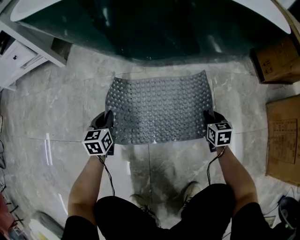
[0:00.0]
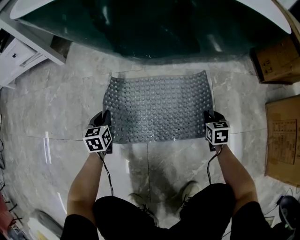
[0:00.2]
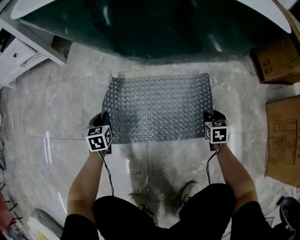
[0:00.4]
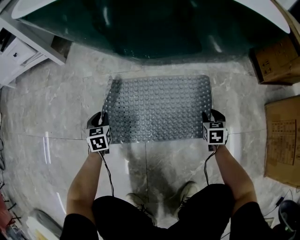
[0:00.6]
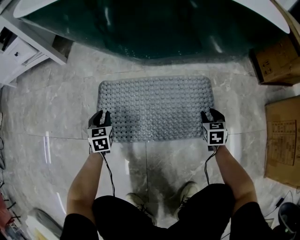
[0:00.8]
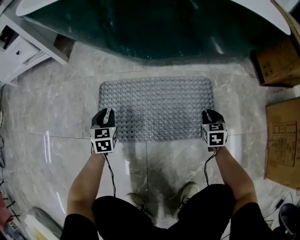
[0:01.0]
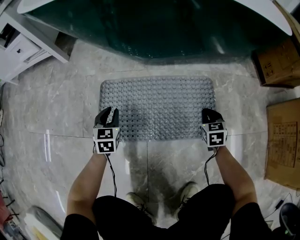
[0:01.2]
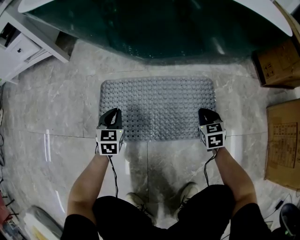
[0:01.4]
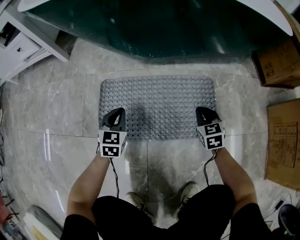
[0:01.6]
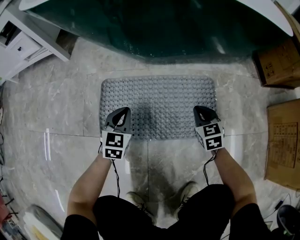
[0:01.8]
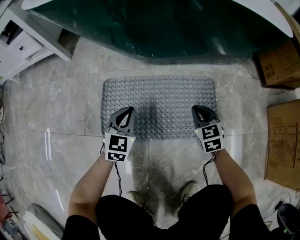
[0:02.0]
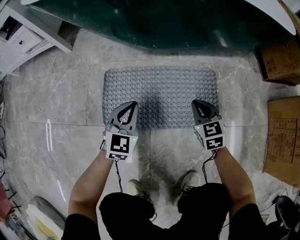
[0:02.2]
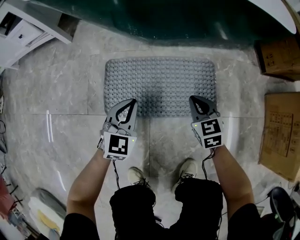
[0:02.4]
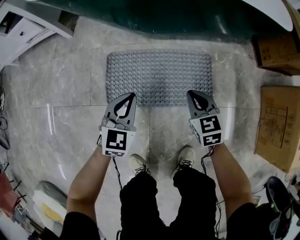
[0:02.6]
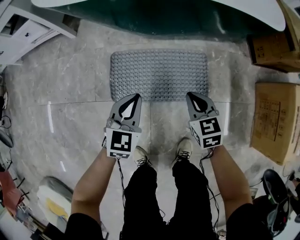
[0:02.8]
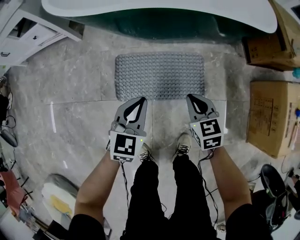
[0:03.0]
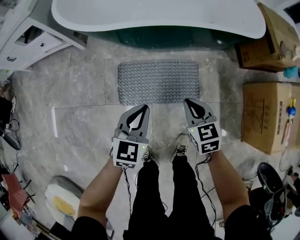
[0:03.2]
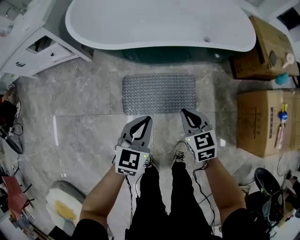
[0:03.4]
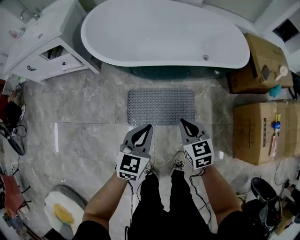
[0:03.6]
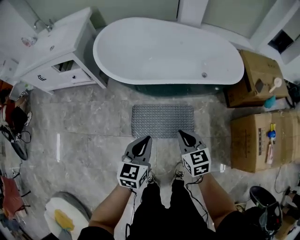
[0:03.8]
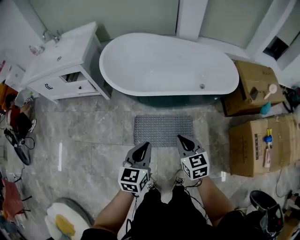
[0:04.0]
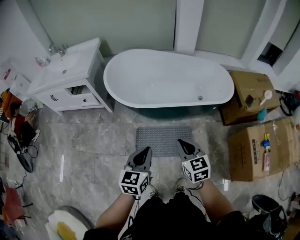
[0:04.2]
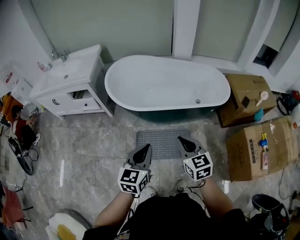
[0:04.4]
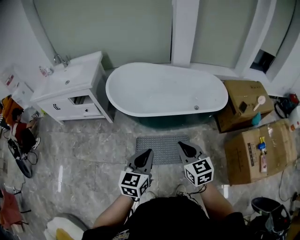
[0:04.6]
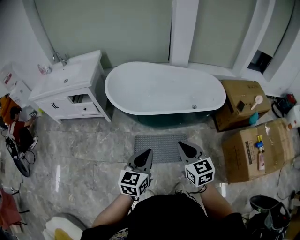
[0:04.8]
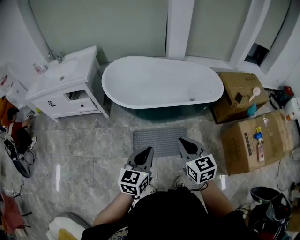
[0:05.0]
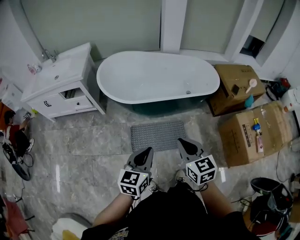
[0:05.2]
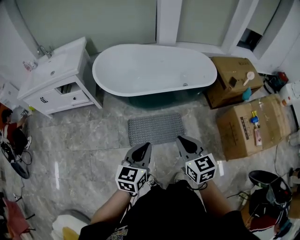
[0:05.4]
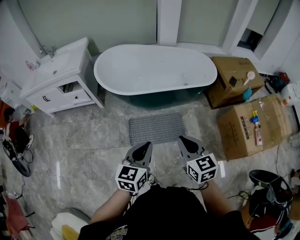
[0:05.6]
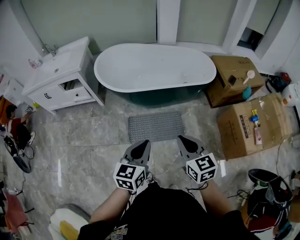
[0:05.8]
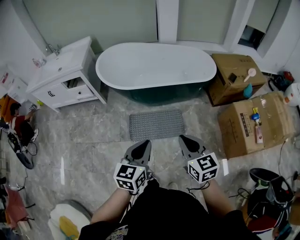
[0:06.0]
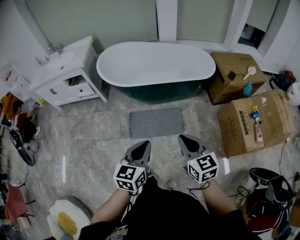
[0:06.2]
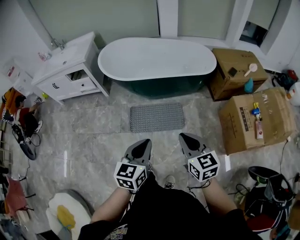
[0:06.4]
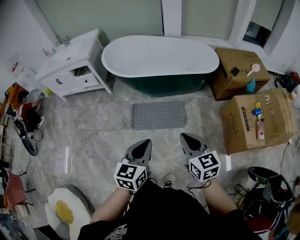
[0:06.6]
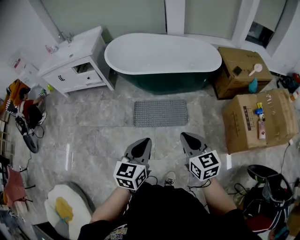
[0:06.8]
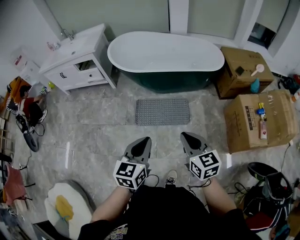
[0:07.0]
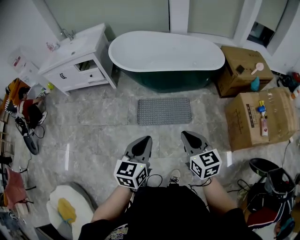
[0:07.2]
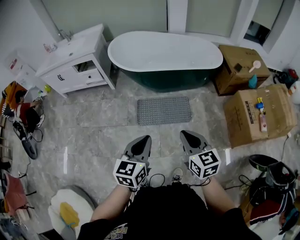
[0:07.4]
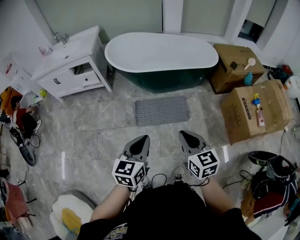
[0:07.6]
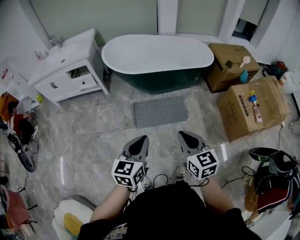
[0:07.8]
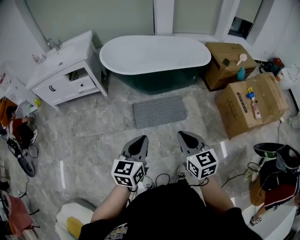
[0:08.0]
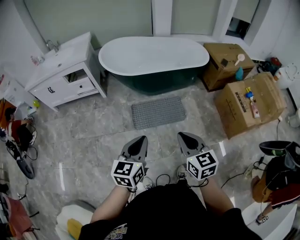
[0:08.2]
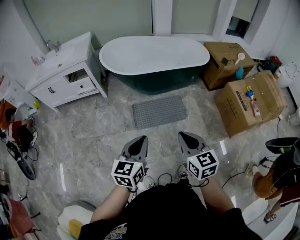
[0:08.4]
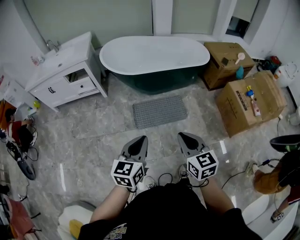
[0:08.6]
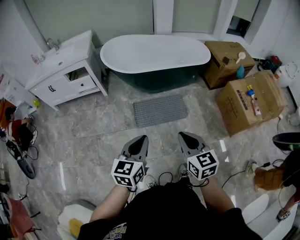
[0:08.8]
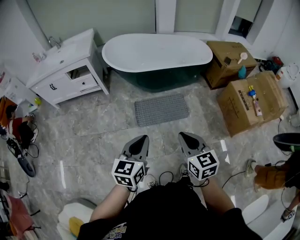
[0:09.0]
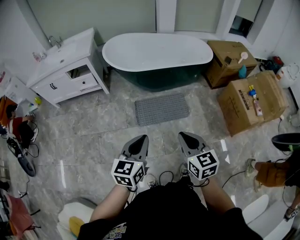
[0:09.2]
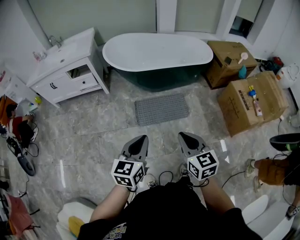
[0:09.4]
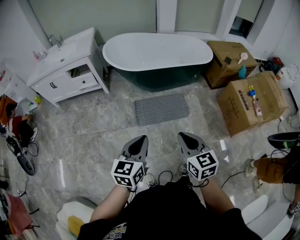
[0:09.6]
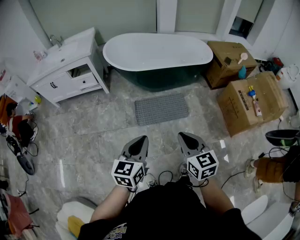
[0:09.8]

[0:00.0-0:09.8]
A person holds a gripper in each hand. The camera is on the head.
0:00.0 to 0:01.4: The right gripper opens, then closes once more.
0:01.4 to 0:02.8: The grippers both shift upward by approximately 25 cm.
0:02.8 to 0:04.2: The two grippers go roughly 50 cm upward. The left gripper turns by approximately 20 degrees.
0:04.2 to 0:05.6: The left gripper heads backward, covering approximately 10 cm. Meanwhile the right gripper shifts roughly 15 cm backward and upward.
0:05.6 to 0:07.0: The left gripper shifts about 20 cm backward; the right gripper goes approximately 20 cm backward and to the right.
0:07.0 to 0:08.4: Both grippers move to the left, approximately 15 cm.
0:08.4 to 0:09.8: The grippers move only a little.

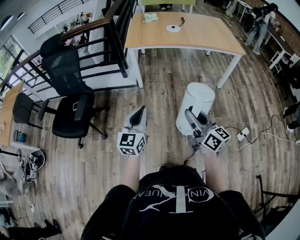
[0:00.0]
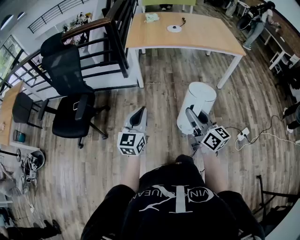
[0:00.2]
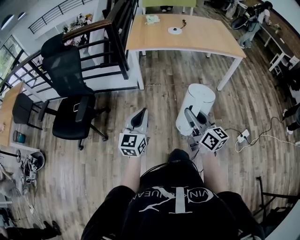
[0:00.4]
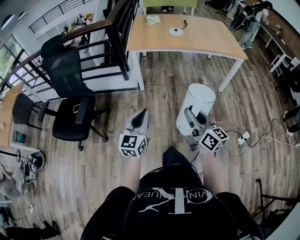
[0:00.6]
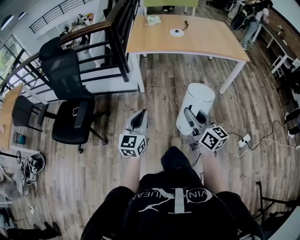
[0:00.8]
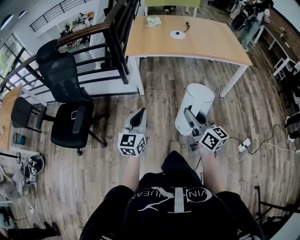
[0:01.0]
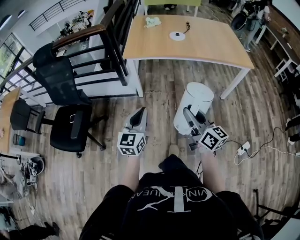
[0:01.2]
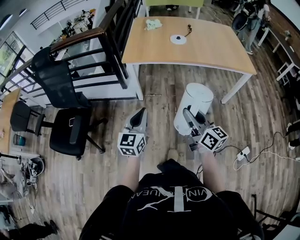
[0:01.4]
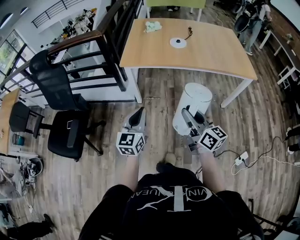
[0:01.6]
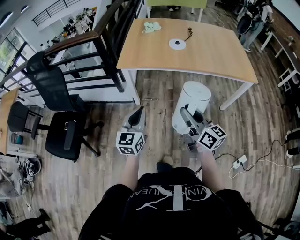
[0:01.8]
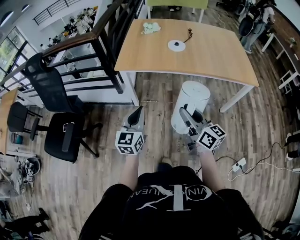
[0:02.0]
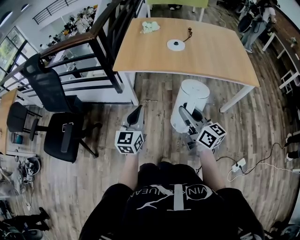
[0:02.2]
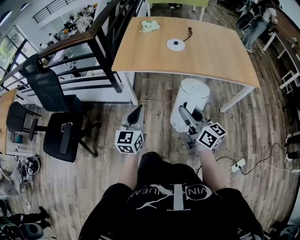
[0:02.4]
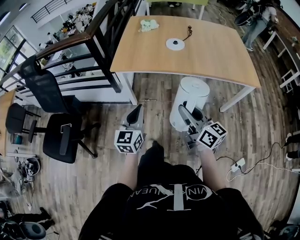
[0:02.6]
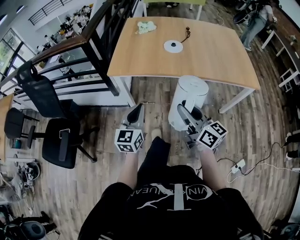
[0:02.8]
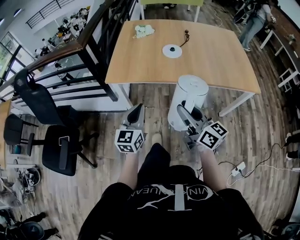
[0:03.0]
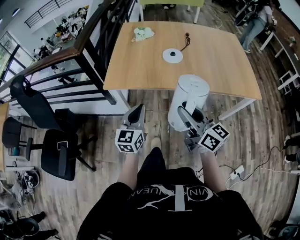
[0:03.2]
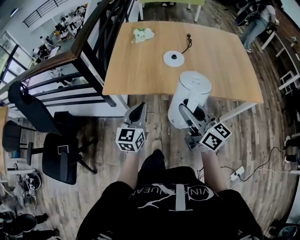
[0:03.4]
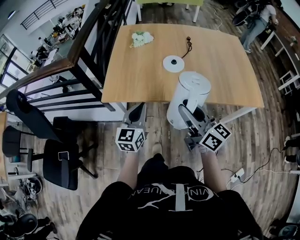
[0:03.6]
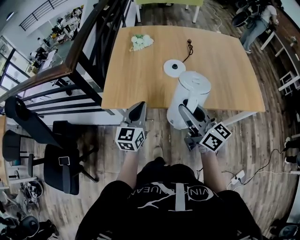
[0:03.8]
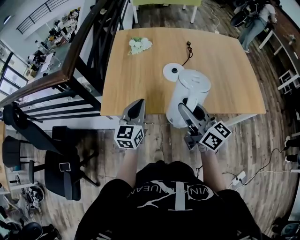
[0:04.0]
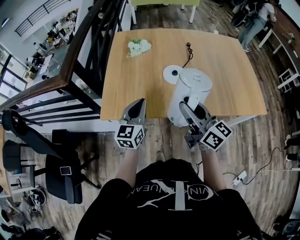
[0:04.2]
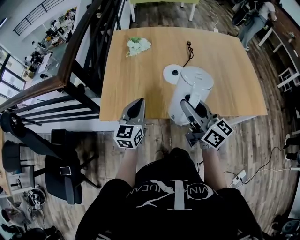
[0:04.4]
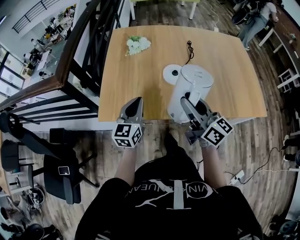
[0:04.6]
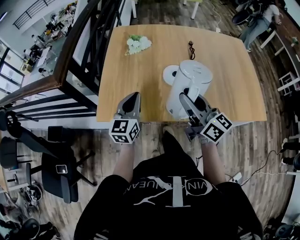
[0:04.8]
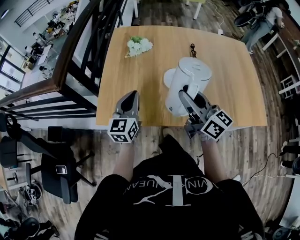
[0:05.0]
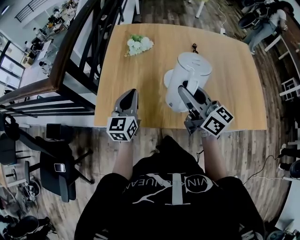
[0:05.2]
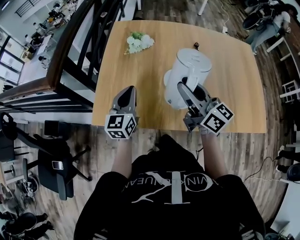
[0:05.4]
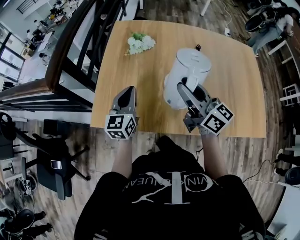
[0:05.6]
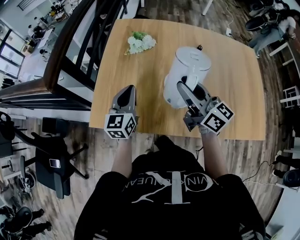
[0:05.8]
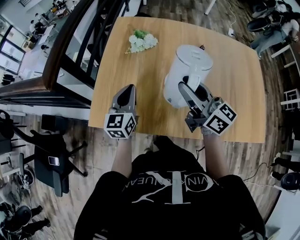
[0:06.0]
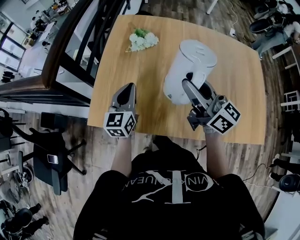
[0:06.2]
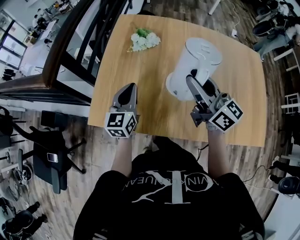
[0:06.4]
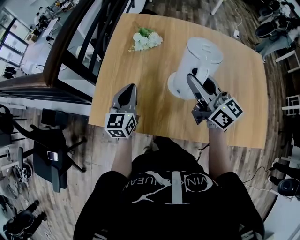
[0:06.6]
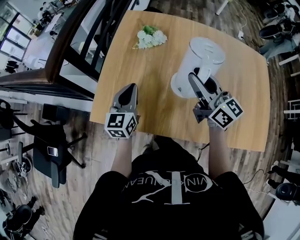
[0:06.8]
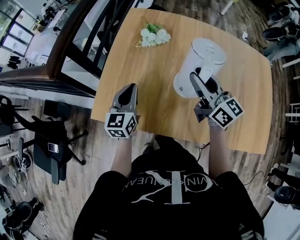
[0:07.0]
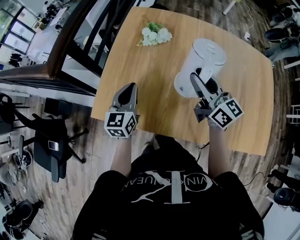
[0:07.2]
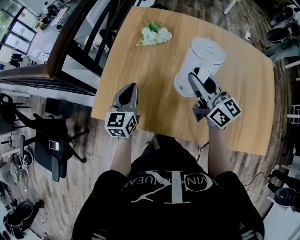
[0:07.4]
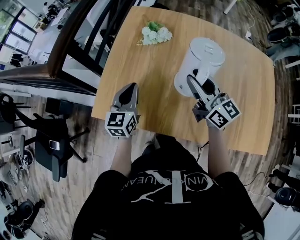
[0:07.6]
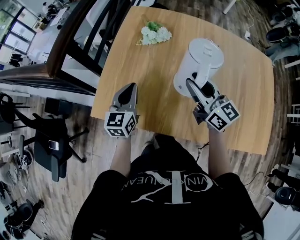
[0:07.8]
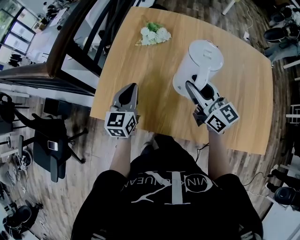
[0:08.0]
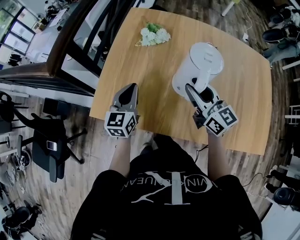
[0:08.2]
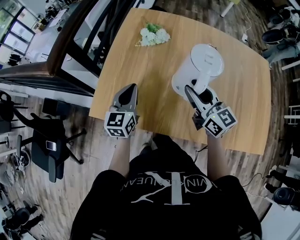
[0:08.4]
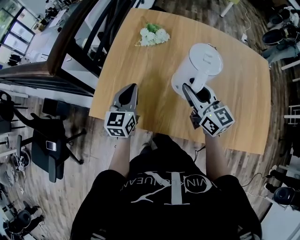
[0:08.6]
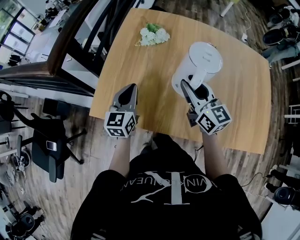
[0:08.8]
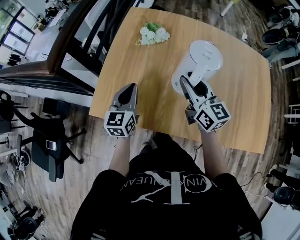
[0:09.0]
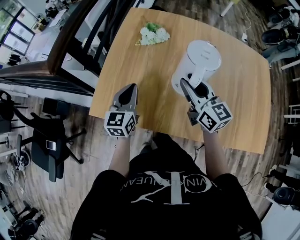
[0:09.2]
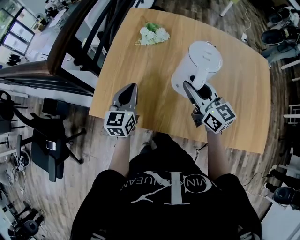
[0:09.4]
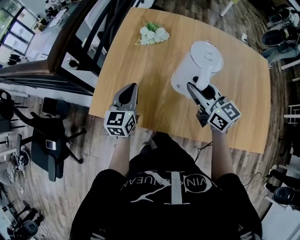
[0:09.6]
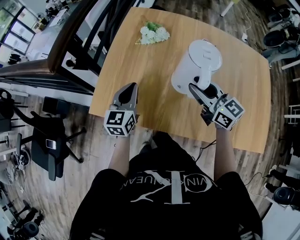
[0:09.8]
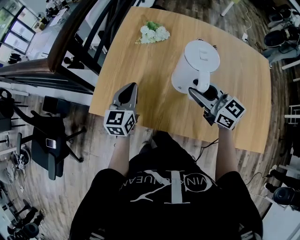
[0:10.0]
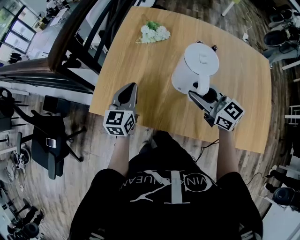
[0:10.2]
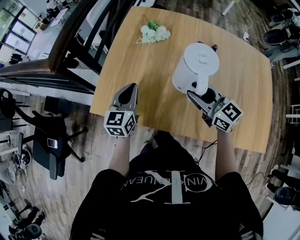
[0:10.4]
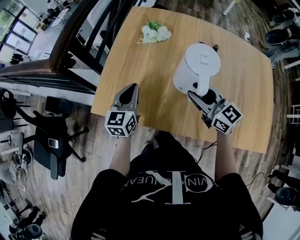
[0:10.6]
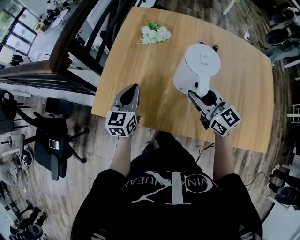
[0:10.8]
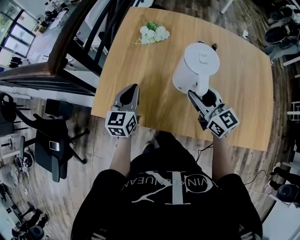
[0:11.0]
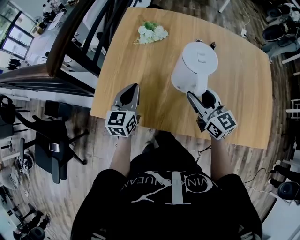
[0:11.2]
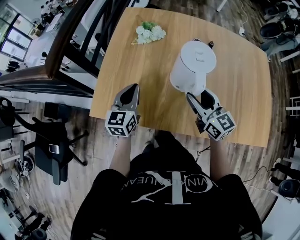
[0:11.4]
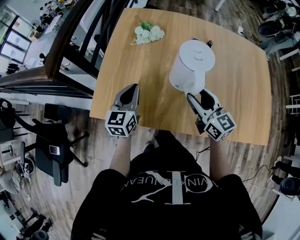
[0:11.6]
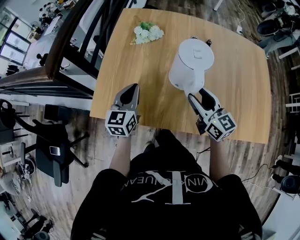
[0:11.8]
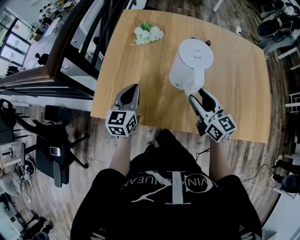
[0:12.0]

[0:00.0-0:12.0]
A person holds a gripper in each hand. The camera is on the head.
0:00.0 to 0:01.6: The two grippers go roughly 25 cm forward.
0:01.6 to 0:03.0: The left gripper heads forward and to the right, covering roughly 20 cm, while the right gripper shifts about 15 cm forward.
0:03.0 to 0:04.4: The grippers both shift forward by about 25 cm.
0:04.4 to 0:06.0: Both grippers travel together forward, about 15 cm.
0:06.0 to 0:07.6: The right gripper moves some 5 cm.
0:07.6 to 0:09.0: The grippers make only small movements.
0:09.0 to 0:10.4: The right gripper goes about 5 cm backward, and swivels some 20 degrees.
0:10.4 to 0:12.0: The right gripper changes place by approximately 5 cm, and swivels some 20 degrees.

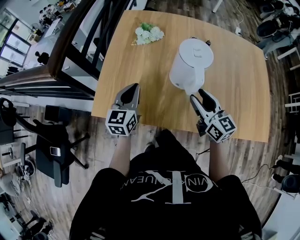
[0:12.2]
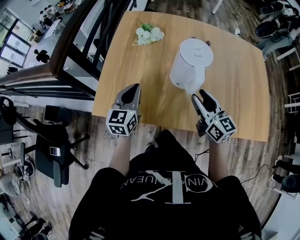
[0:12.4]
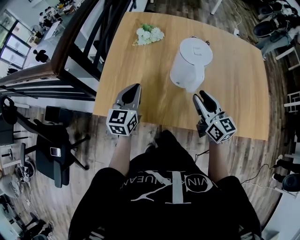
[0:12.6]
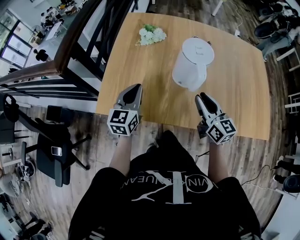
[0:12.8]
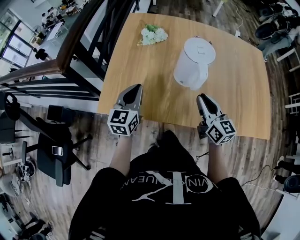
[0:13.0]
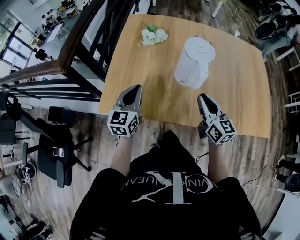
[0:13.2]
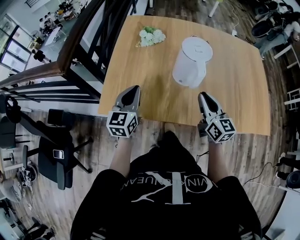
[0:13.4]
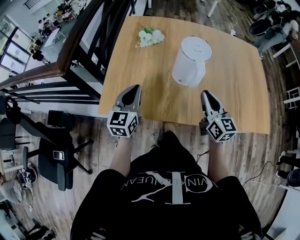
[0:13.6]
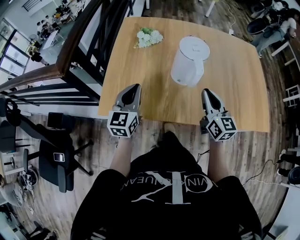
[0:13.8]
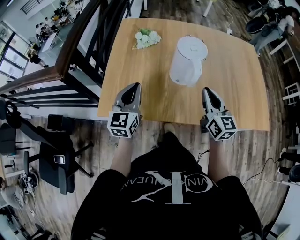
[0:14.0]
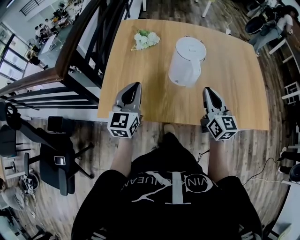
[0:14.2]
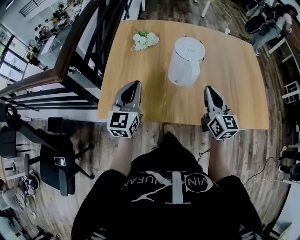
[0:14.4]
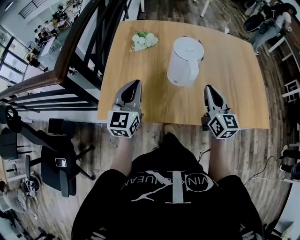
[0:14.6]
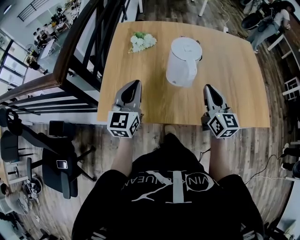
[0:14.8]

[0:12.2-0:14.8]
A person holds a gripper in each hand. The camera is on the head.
0:12.2 to 0:13.4: The left gripper shifts by roughly 5 cm; the right gripper closes its fingers.
0:13.4 to 0:14.8: The left gripper shifts approximately 5 cm upward, while the right gripper shifts by approximately 5 cm.
